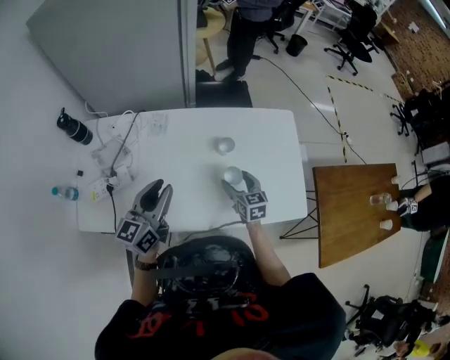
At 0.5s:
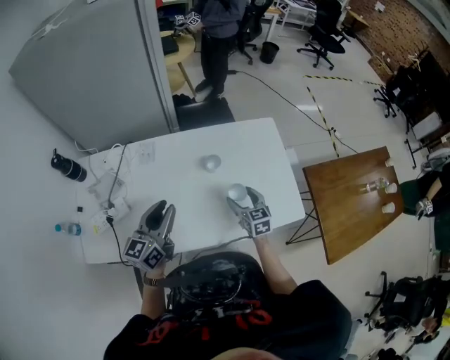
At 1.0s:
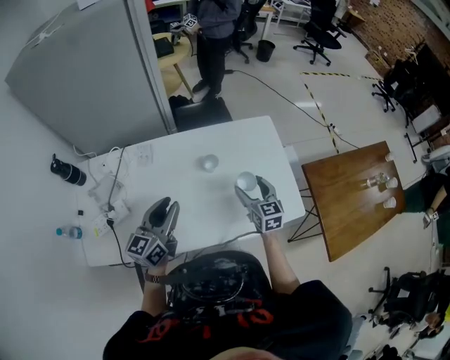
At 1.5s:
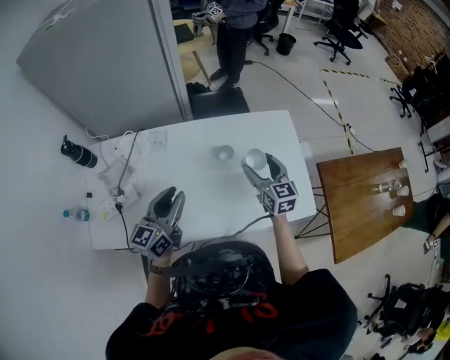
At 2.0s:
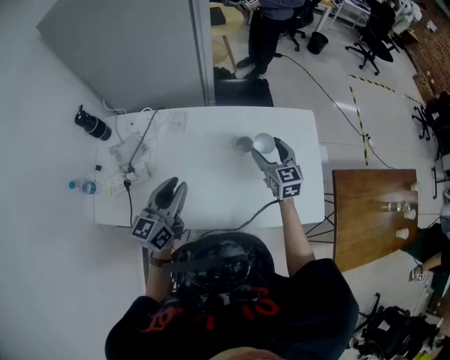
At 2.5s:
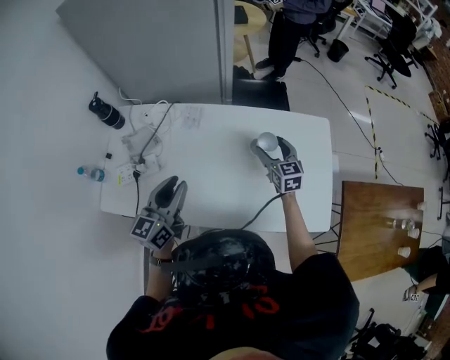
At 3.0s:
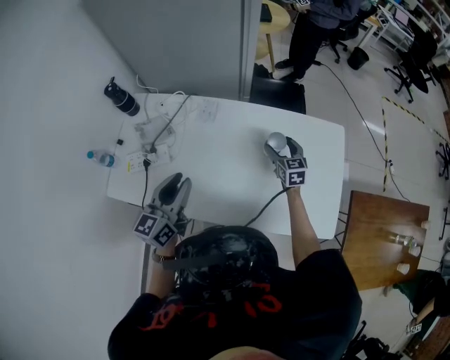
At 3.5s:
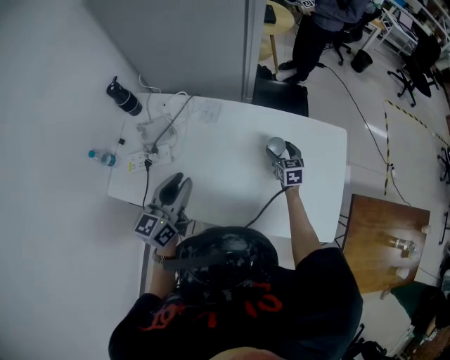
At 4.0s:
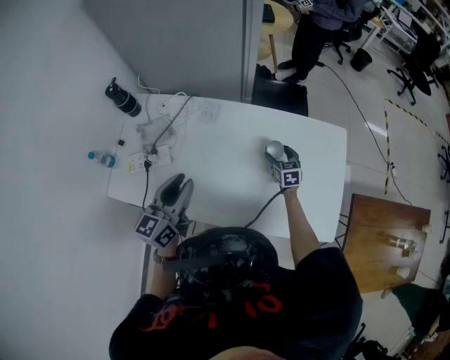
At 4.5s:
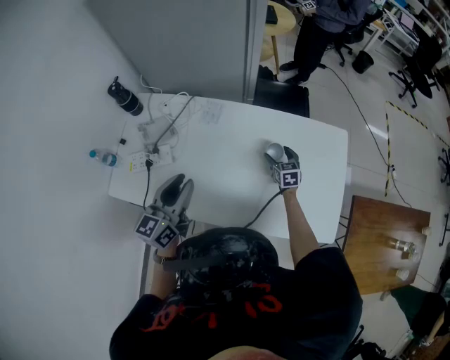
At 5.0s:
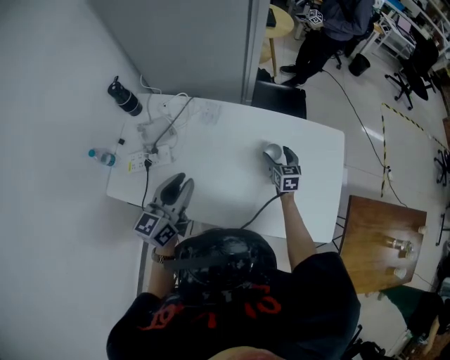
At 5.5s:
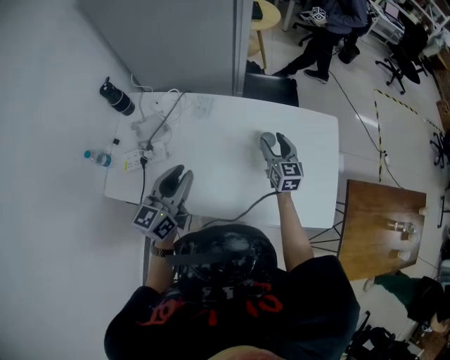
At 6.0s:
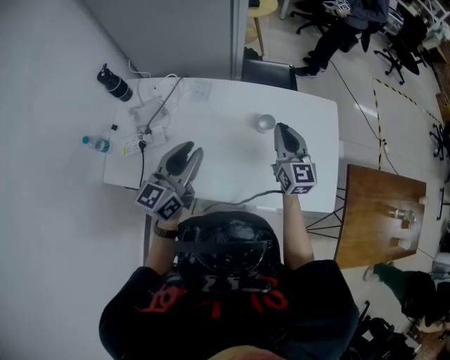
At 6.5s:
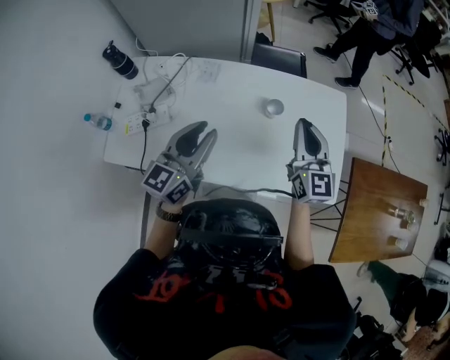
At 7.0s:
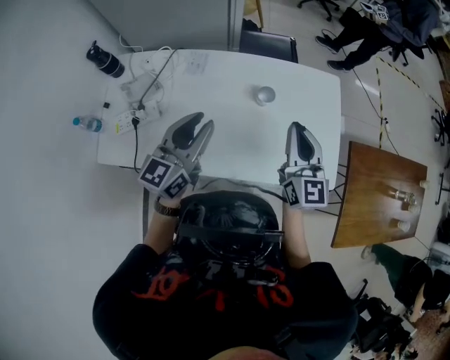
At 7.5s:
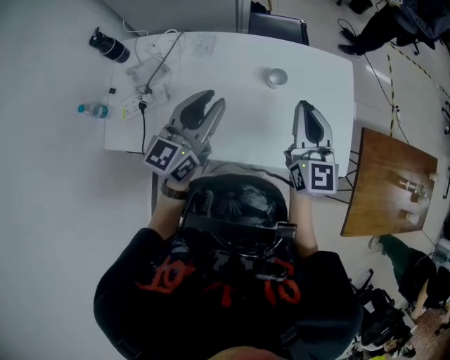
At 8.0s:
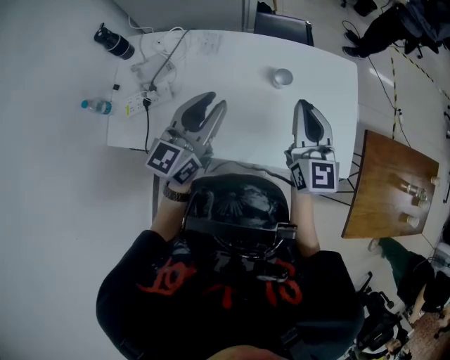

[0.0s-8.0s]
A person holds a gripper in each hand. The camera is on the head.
0.0s to 2.0s: The right gripper goes some 15 cm upward and forward.
2.0s to 4.0s: The right gripper moves downward, roughly 20 cm.
4.0s to 6.0s: The left gripper moves about 5 cm; the right gripper travels upward and backward by about 25 cm, tilts its fingers about 30 degrees upward, and closes up.
6.0s to 8.0s: The right gripper heads backward and upward, covering some 10 cm.

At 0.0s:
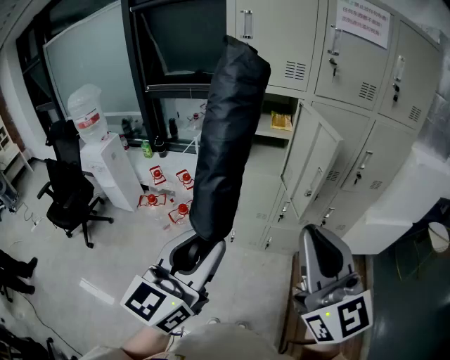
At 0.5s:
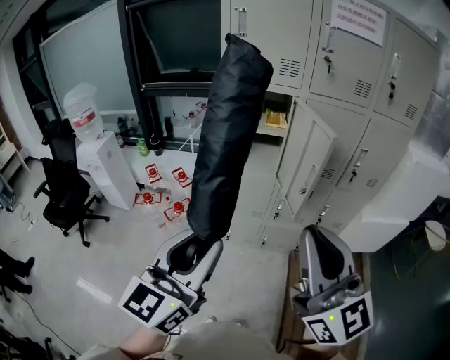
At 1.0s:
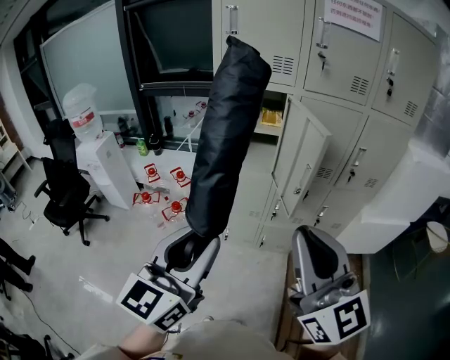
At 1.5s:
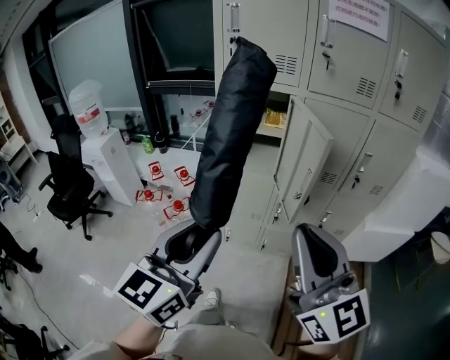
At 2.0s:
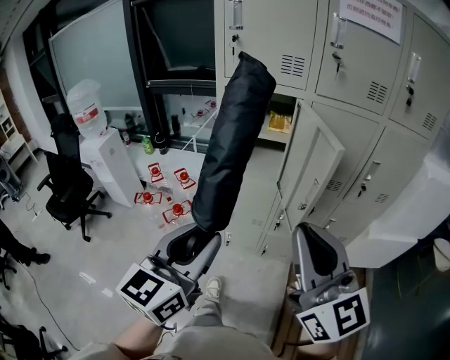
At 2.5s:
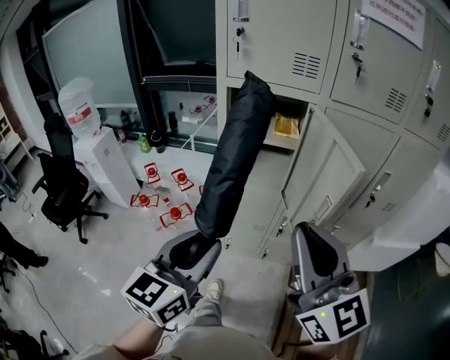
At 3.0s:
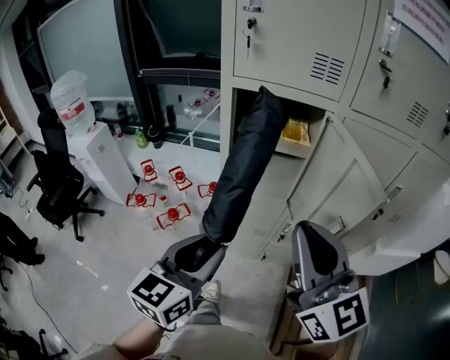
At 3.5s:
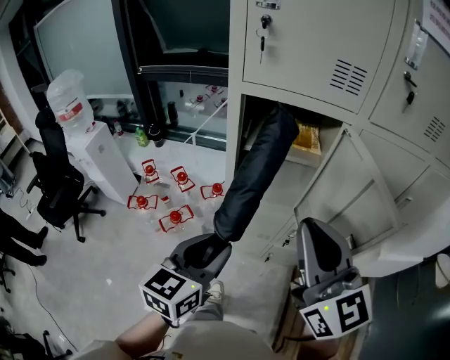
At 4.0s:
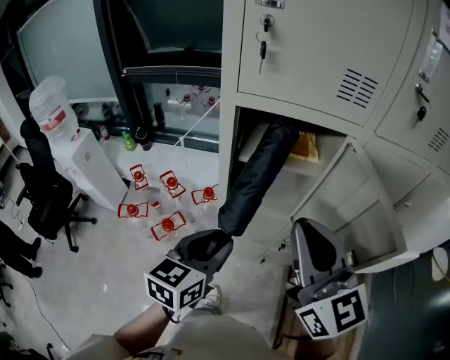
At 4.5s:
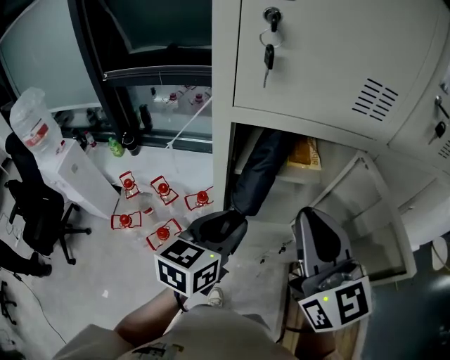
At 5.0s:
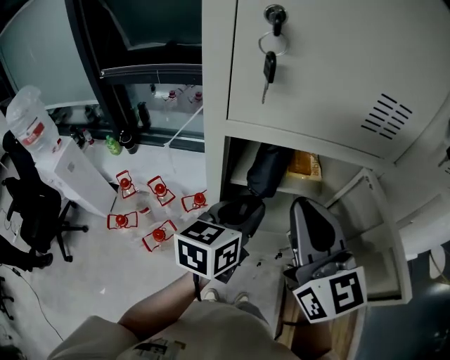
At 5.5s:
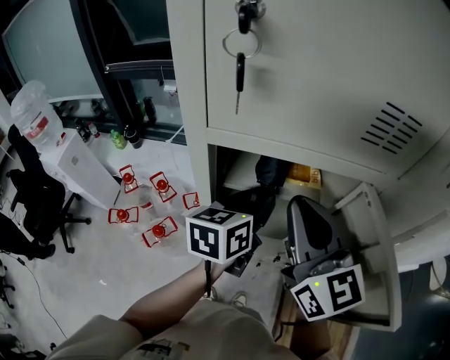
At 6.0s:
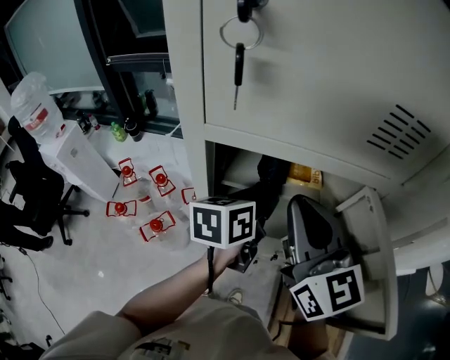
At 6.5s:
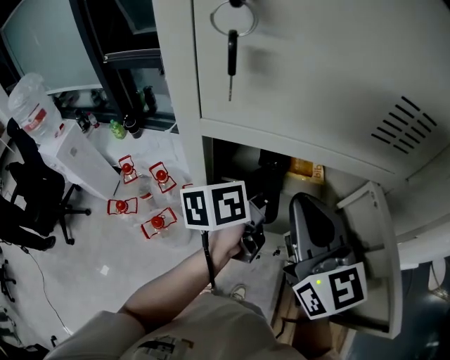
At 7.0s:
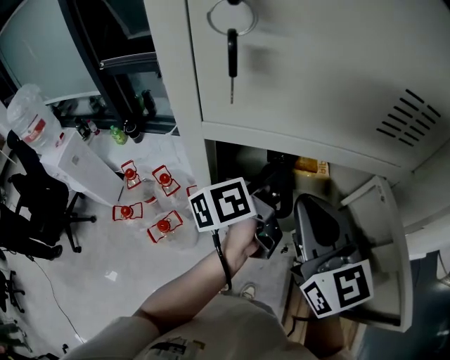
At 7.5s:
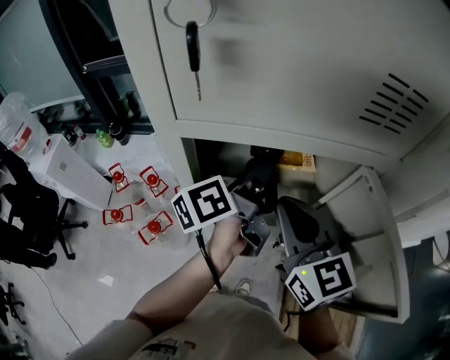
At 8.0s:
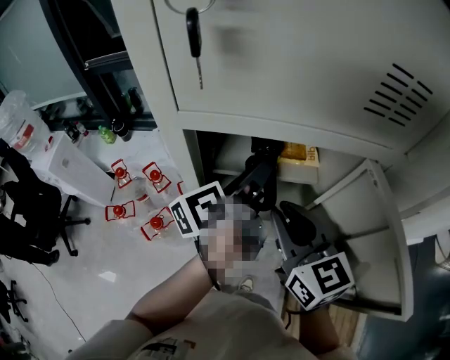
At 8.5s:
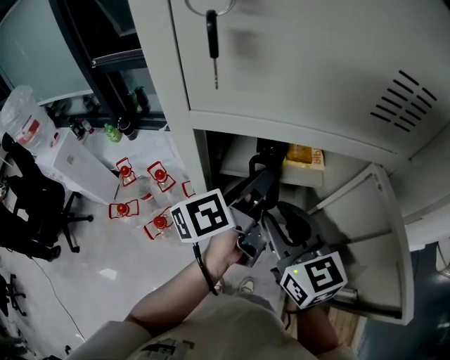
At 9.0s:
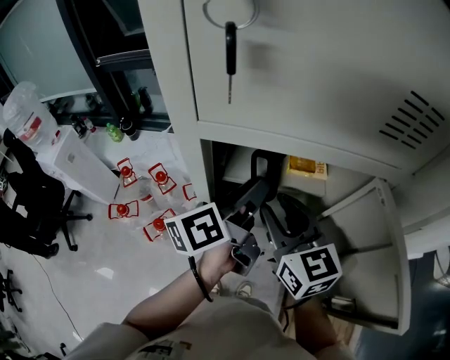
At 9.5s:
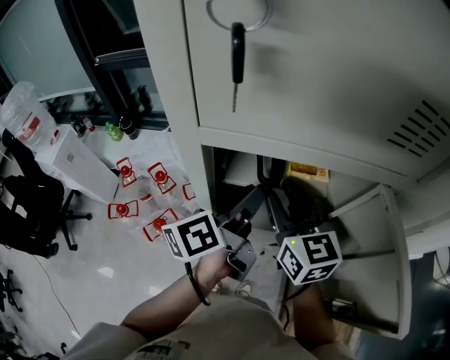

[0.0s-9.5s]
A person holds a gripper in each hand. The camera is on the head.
0.0s to 2.0s: The left gripper is displaced forward and to the right by roughly 10 cm; the right gripper goes roughly 10 cm forward.
2.0s to 4.0s: The left gripper is displaced forward and downward by approximately 30 cm, and turns by about 20 degrees; the right gripper moves forward, about 25 cm.
4.0s to 5.5s: Both grippers move forward, roughly 20 cm.
5.5s to 7.5s: The right gripper shifts roughly 5 cm downward; the left gripper swivels about 40 degrees.
7.5s to 9.5s: The left gripper moves about 5 cm. Meanwhile the right gripper goes roughly 5 cm forward, and opens up.

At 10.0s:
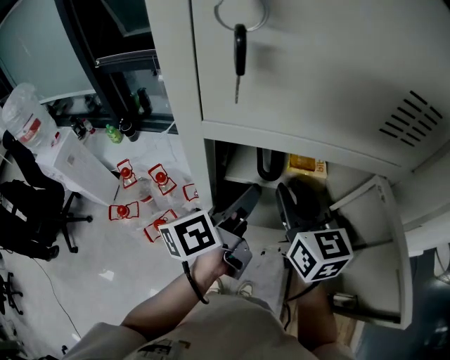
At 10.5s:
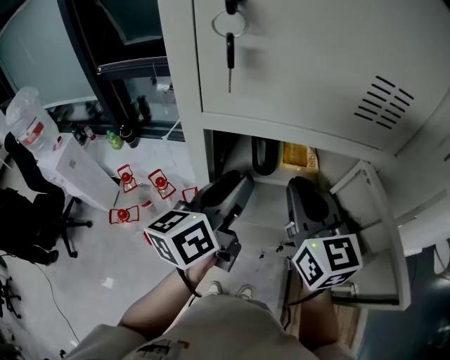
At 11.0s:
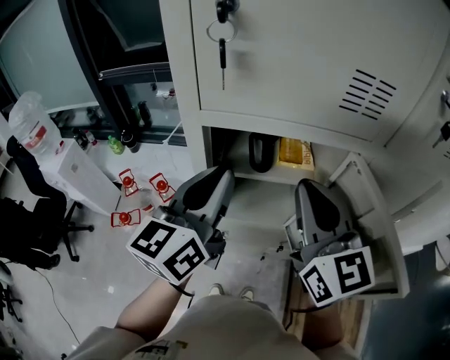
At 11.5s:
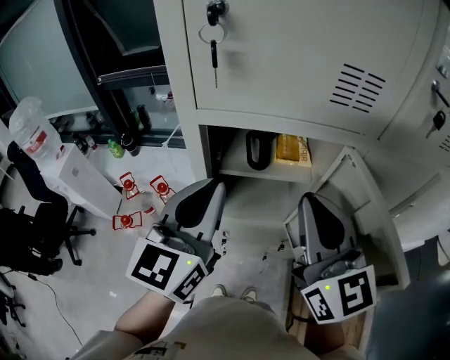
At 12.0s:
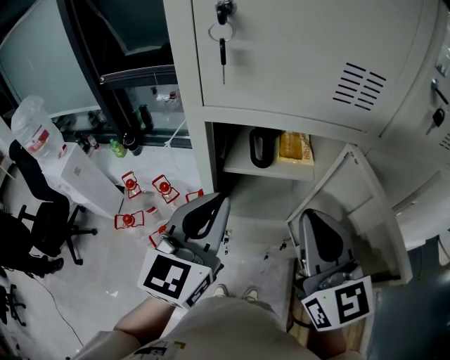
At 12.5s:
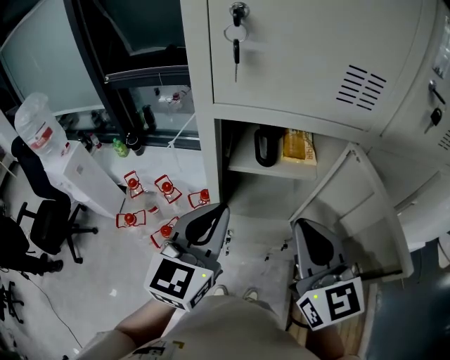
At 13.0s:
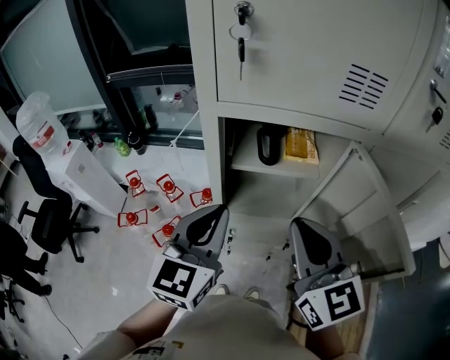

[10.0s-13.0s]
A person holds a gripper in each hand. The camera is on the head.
10.0s to 11.5s: The two grippers go approximately 15 cm upward and backward. The right gripper closes, while the left gripper twists roughly 60 degrees clockwise, seen from behind, and closes up.
11.5s to 13.0s: Both grippers travel together downward, about 5 cm.

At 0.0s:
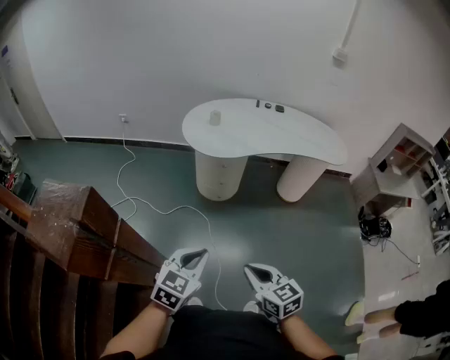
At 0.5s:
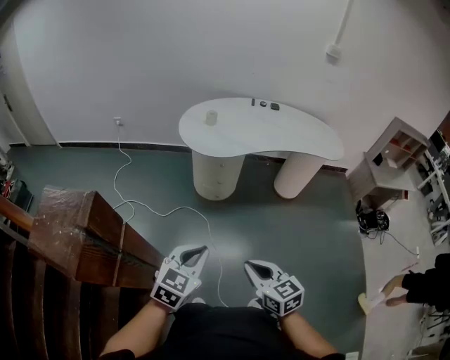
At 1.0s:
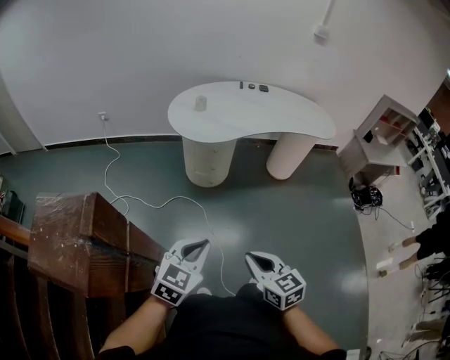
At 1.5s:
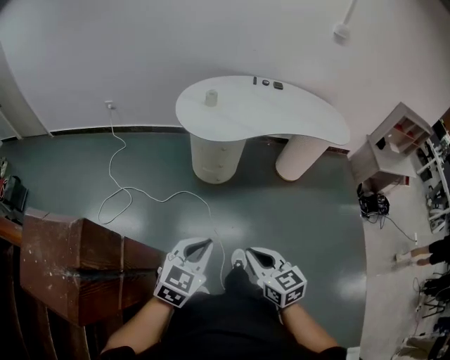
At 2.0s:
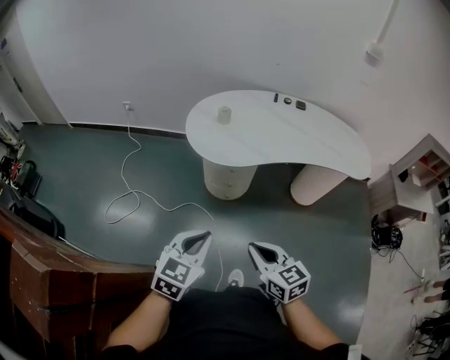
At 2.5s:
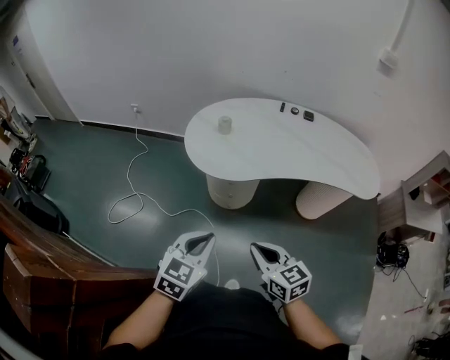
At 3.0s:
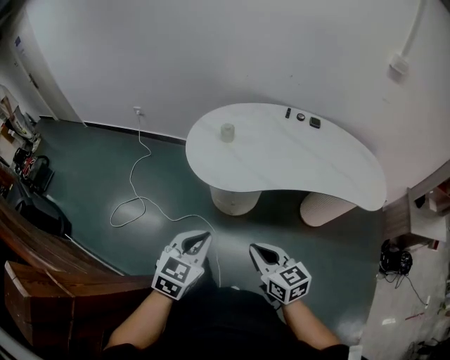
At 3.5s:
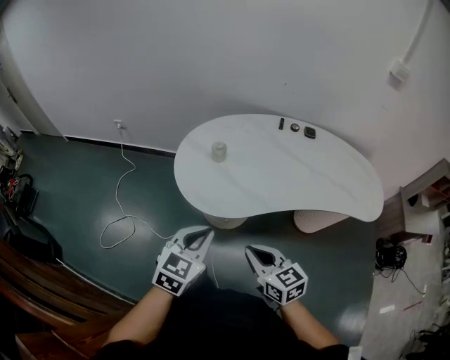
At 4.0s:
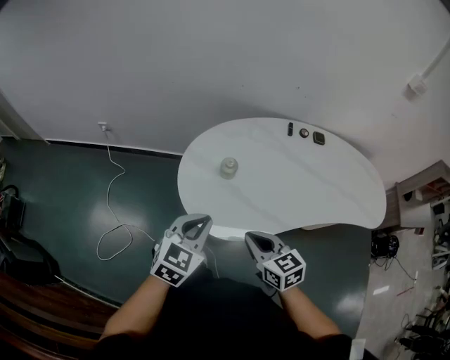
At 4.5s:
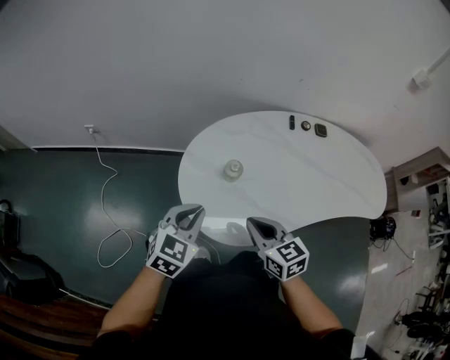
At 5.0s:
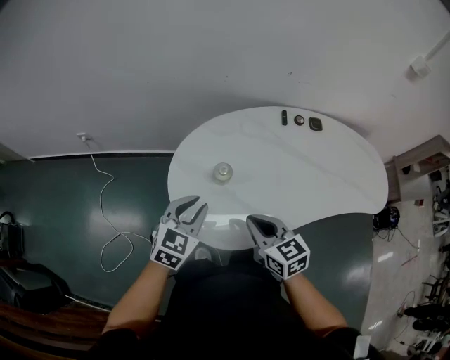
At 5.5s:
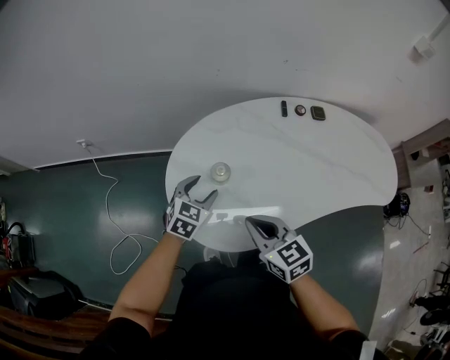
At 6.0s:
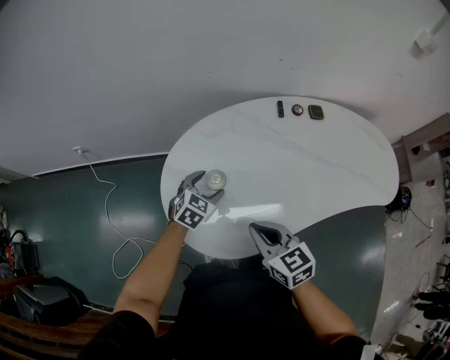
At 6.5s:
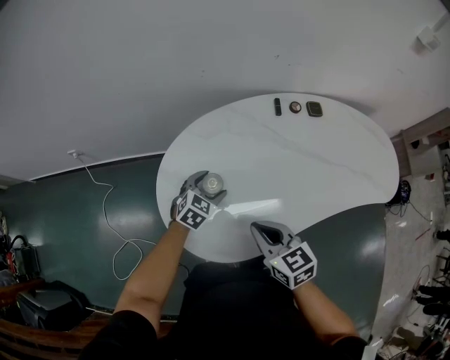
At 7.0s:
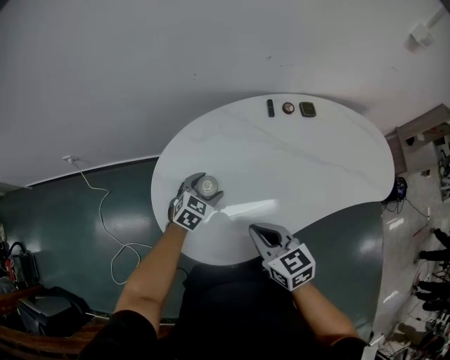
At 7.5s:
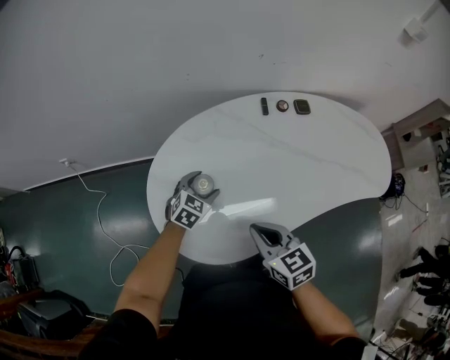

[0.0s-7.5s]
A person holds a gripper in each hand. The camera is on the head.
0.0s to 2.0s: Both grippers move forward, roughly 20 cm.
2.0s to 4.0s: Both grippers are carried forward, approximately 40 cm.
4.0s to 5.5s: The left gripper travels forward and downward by about 25 cm, and opens. The right gripper travels forward by approximately 10 cm.
5.5s to 7.5s: The left gripper heads to the right, forward and downward, covering roughly 10 cm. The right gripper is displaced to the right by approximately 5 cm.
